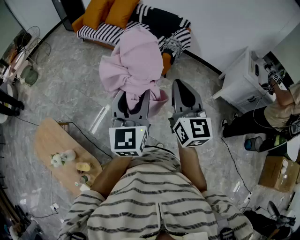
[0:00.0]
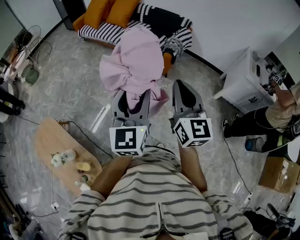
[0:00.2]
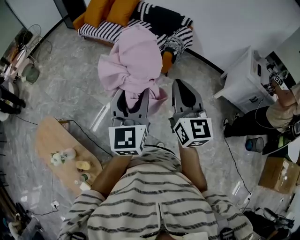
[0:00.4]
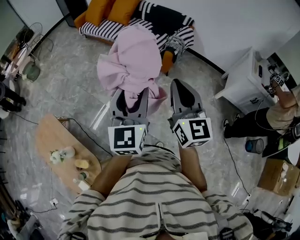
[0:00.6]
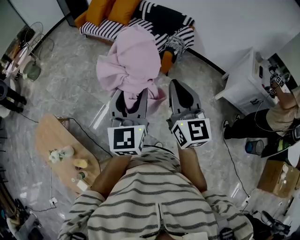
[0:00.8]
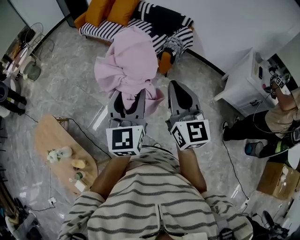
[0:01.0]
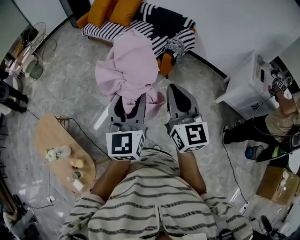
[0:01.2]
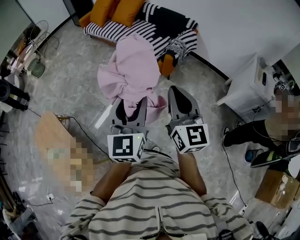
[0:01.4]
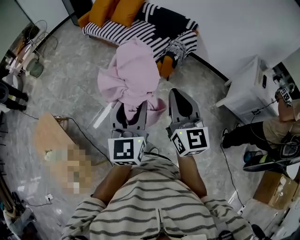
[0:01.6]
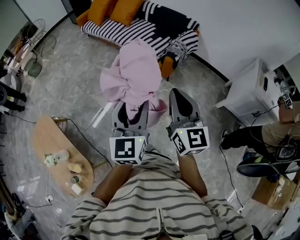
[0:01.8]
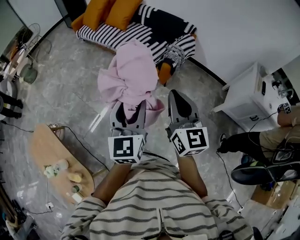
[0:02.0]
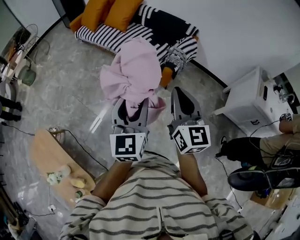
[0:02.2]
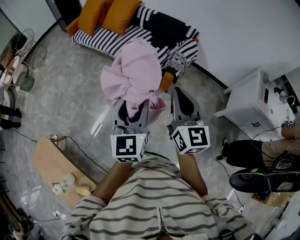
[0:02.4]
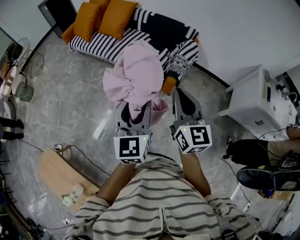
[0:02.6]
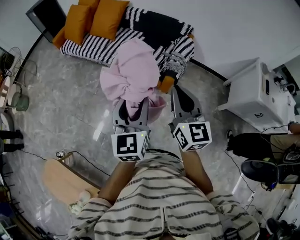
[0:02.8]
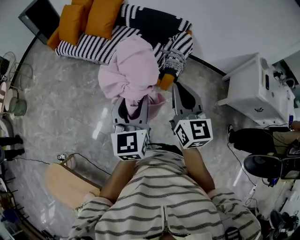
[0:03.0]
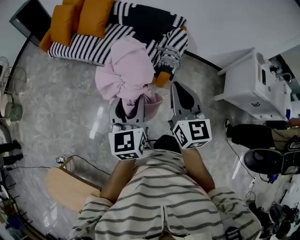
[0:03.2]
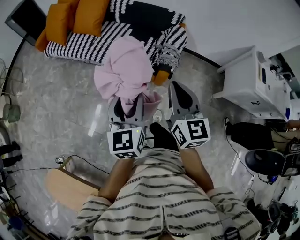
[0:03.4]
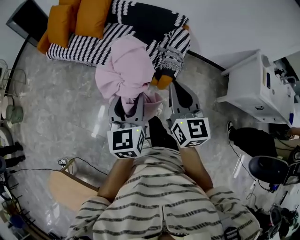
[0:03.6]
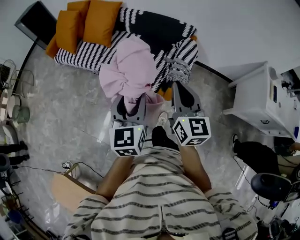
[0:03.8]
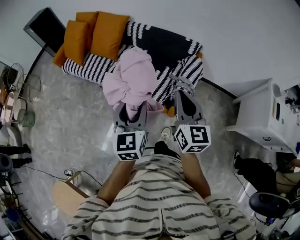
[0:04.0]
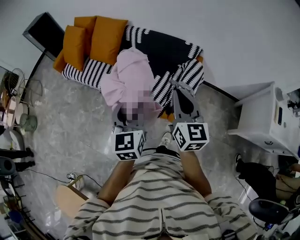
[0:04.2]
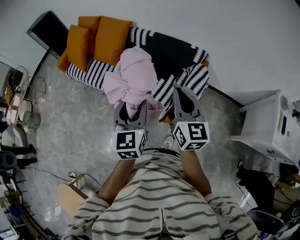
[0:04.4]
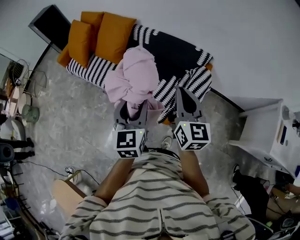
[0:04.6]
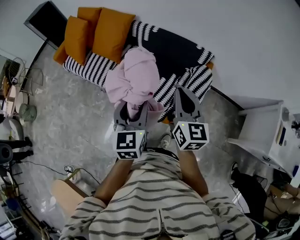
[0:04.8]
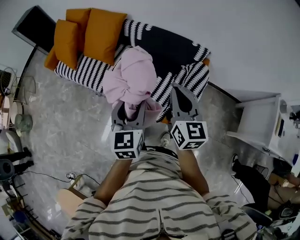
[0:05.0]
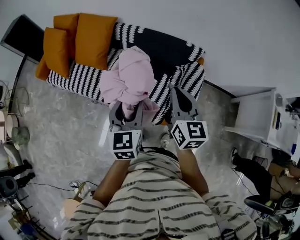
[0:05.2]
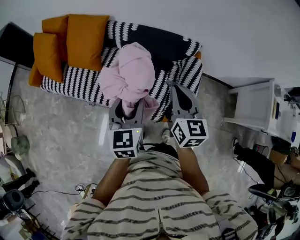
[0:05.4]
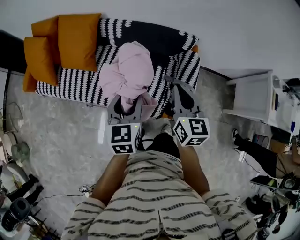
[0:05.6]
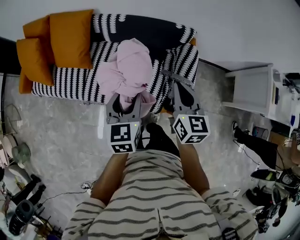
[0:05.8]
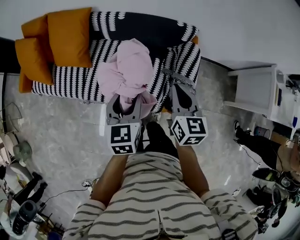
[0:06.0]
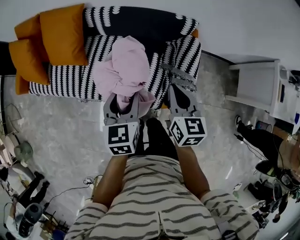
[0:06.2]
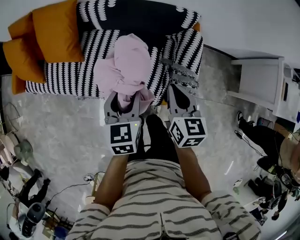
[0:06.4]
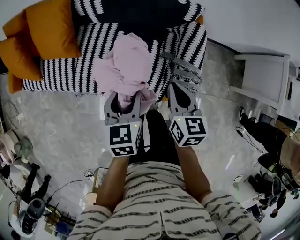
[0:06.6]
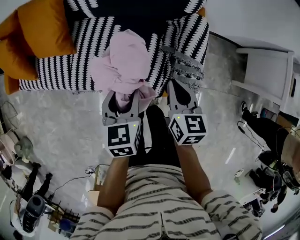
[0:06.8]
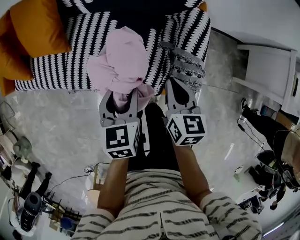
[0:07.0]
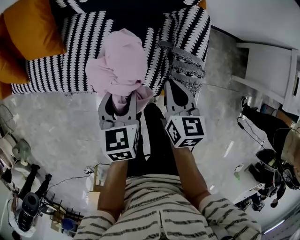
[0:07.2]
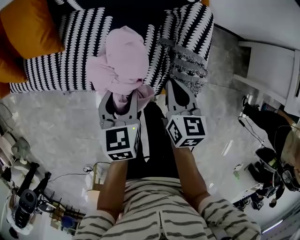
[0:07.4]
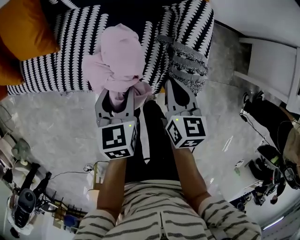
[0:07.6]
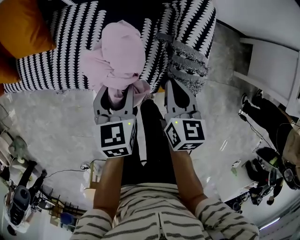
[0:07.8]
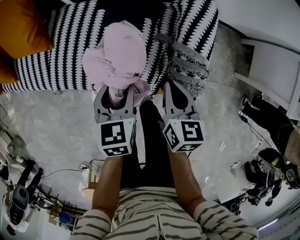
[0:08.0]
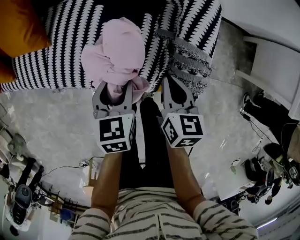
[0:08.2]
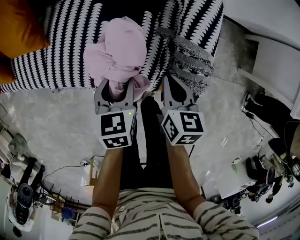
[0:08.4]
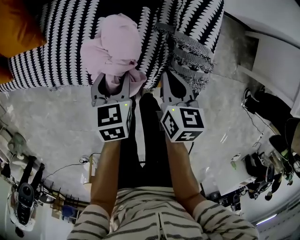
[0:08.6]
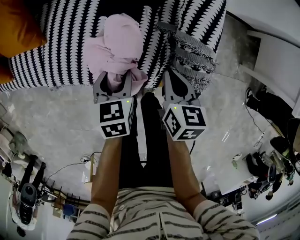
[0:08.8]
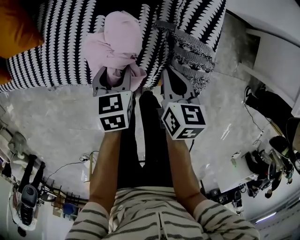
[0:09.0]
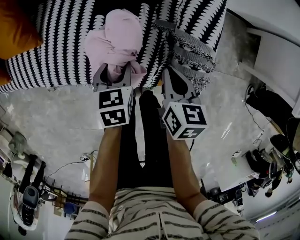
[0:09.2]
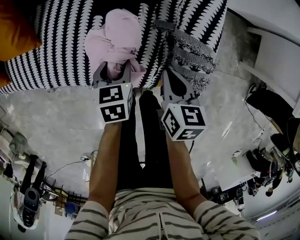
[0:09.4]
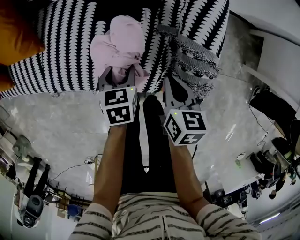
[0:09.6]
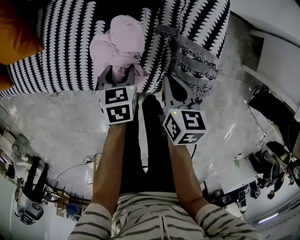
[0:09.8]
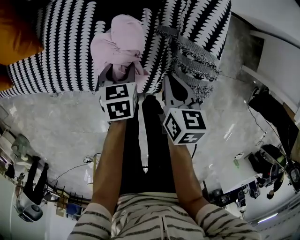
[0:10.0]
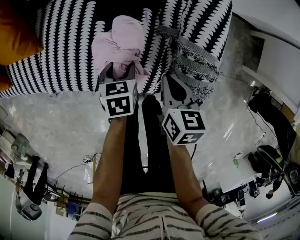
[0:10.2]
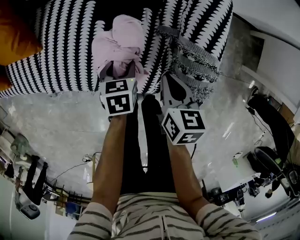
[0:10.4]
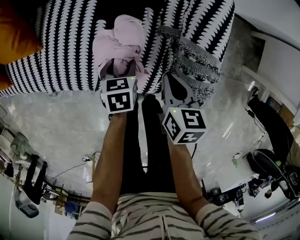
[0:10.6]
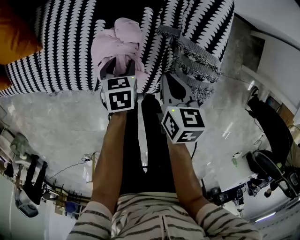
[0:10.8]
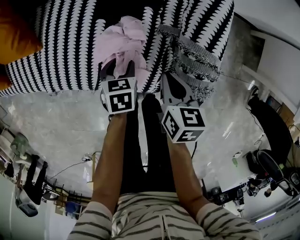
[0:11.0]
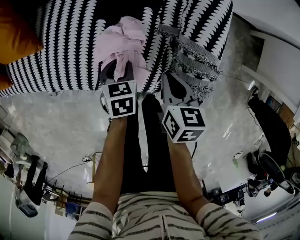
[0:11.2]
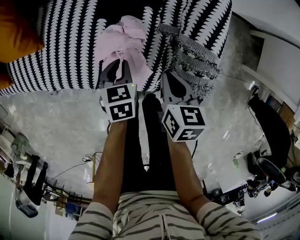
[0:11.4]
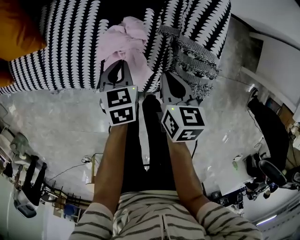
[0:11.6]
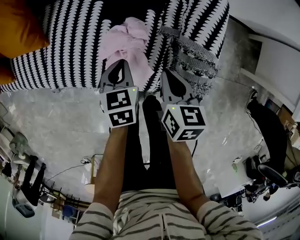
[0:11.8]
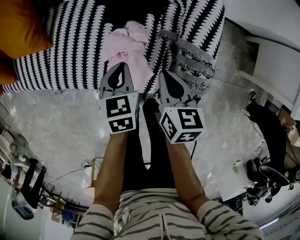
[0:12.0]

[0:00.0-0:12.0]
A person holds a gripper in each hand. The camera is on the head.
0:00.0 to 0:01.6: The two grippers go some 10 cm to the right.
0:01.6 to 0:03.0: Both grippers travel together forward, roughly 40 cm.
0:03.0 to 0:04.4: Both grippers move forward, roughly 35 cm.
0:04.4 to 0:06.0: Both grippers move forward and downward, roughly 25 cm. The left gripper rotates roughly 30 degrees. Meanwhile the right gripper turns by about 30 degrees.
0:06.0 to 0:07.6: The two grippers go about 25 cm downward.
0:07.6 to 0:09.0: The right gripper shifts approximately 10 cm downward, while the left gripper goes roughly 15 cm downward.
0:09.0 to 0:10.4: The left gripper is displaced downward by roughly 10 cm. Meanwhile the right gripper goes roughly 5 cm downward.
0:10.4 to 0:12.0: The left gripper moves upward, approximately 15 cm, and closes up; the right gripper heads upward, covering approximately 10 cm.

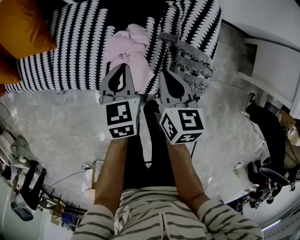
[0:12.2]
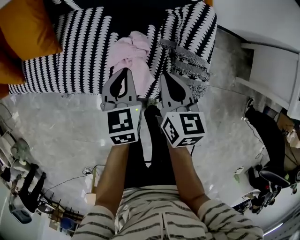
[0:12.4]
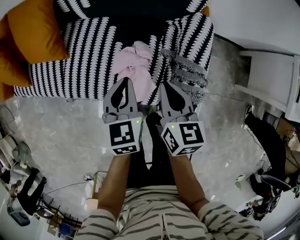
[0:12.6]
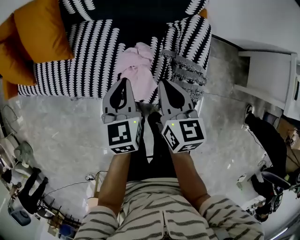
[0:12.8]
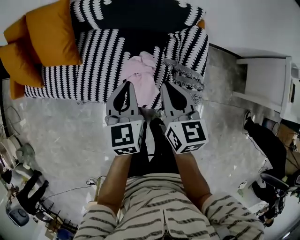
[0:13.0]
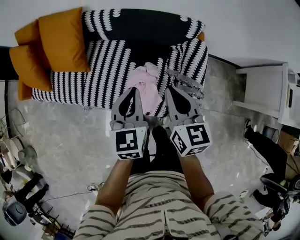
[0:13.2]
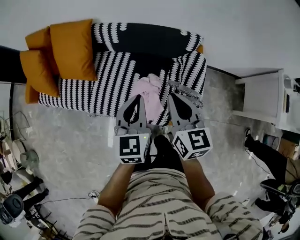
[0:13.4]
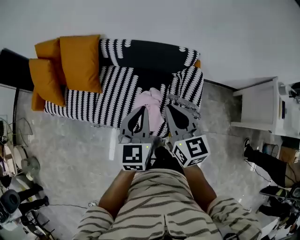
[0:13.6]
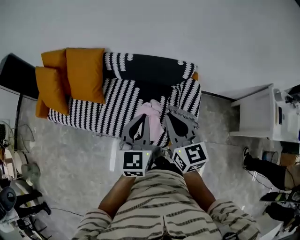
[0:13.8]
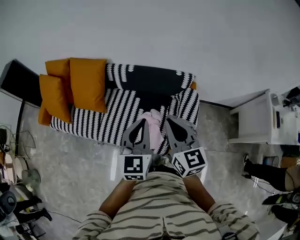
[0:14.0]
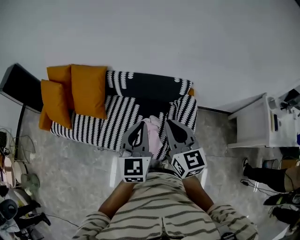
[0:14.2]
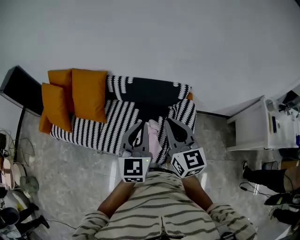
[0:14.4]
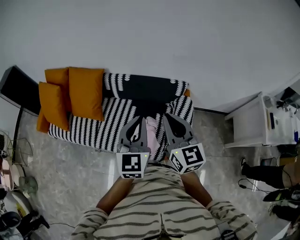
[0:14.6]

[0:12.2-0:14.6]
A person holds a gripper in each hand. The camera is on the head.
0:12.2 to 0:13.4: Both grippers move upward, approximately 30 cm. The left gripper turns by about 20 degrees. The right gripper turns by approximately 20 degrees.
0:13.4 to 0:14.6: Both grippers travel together upward, approximately 20 cm.

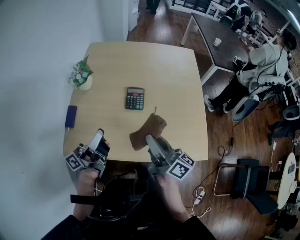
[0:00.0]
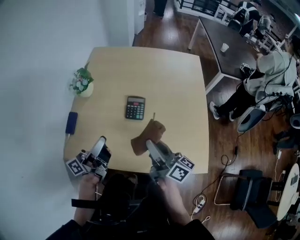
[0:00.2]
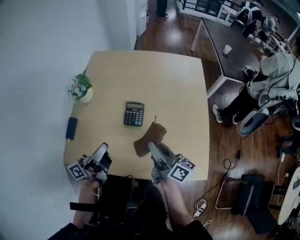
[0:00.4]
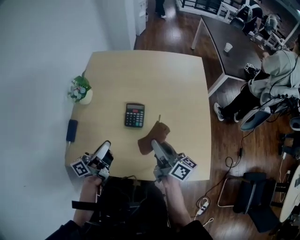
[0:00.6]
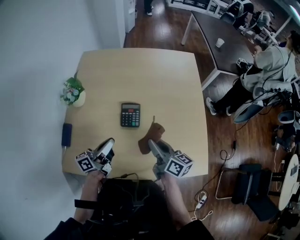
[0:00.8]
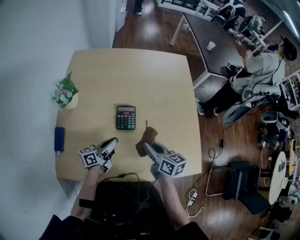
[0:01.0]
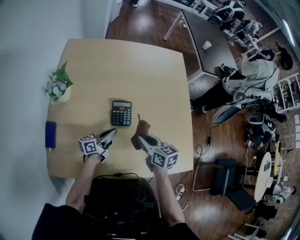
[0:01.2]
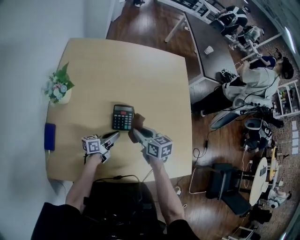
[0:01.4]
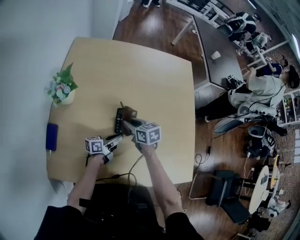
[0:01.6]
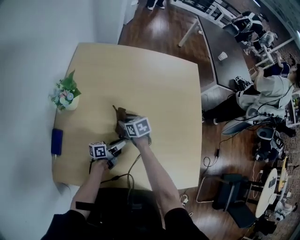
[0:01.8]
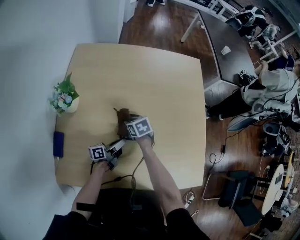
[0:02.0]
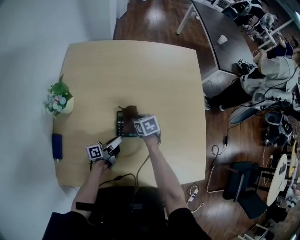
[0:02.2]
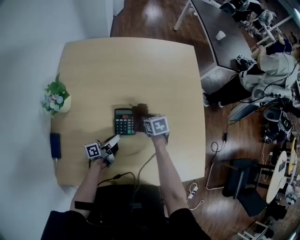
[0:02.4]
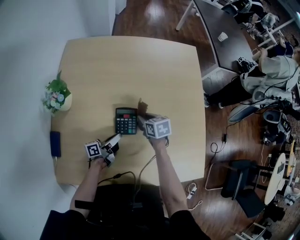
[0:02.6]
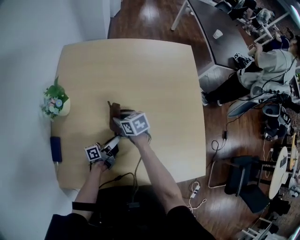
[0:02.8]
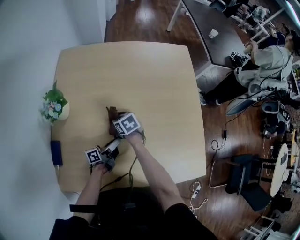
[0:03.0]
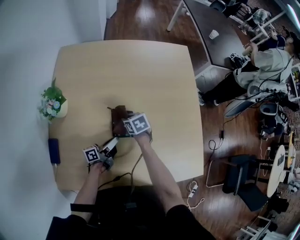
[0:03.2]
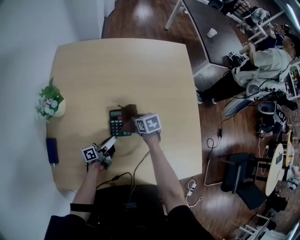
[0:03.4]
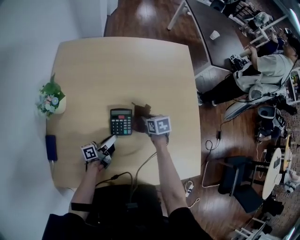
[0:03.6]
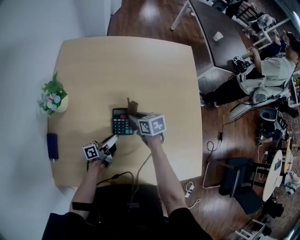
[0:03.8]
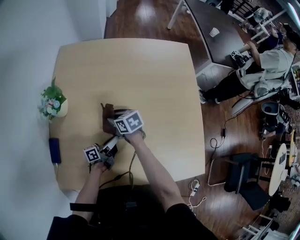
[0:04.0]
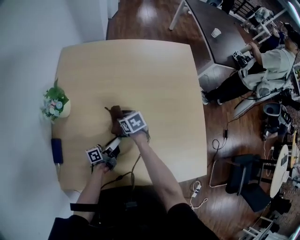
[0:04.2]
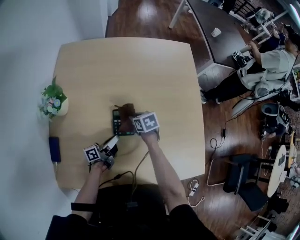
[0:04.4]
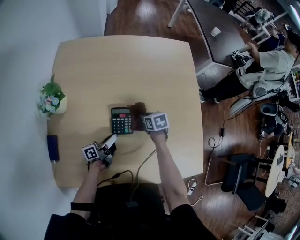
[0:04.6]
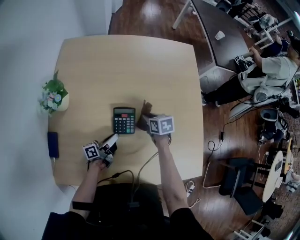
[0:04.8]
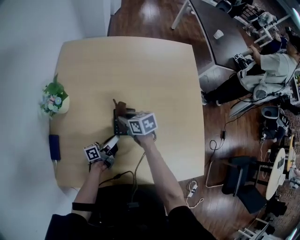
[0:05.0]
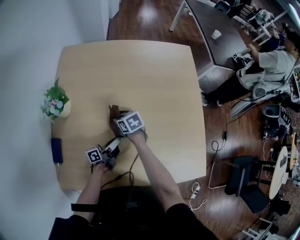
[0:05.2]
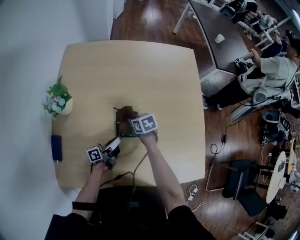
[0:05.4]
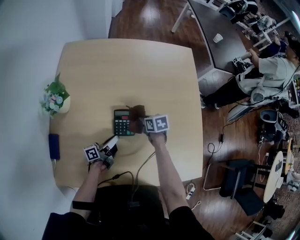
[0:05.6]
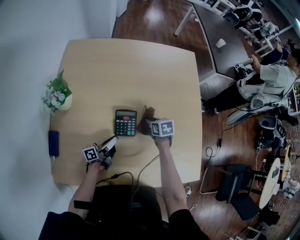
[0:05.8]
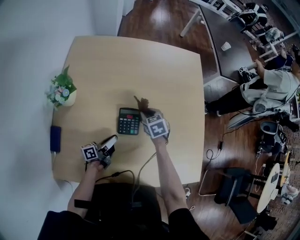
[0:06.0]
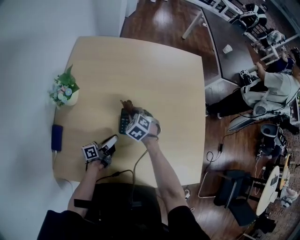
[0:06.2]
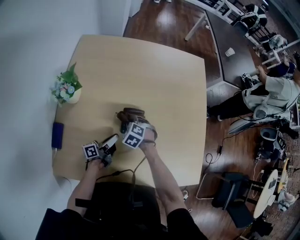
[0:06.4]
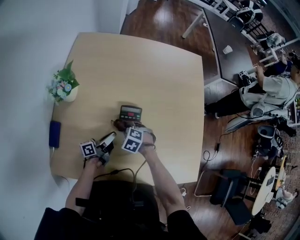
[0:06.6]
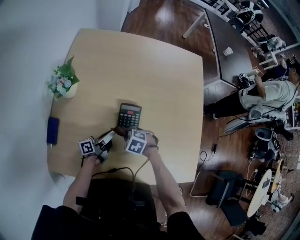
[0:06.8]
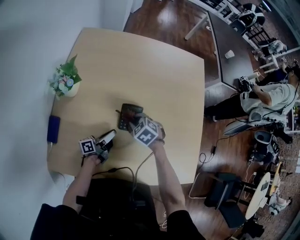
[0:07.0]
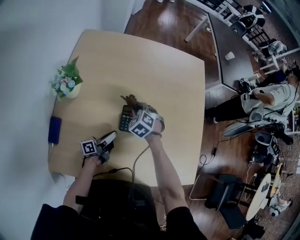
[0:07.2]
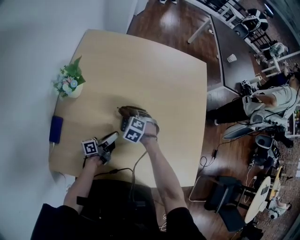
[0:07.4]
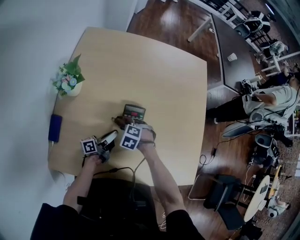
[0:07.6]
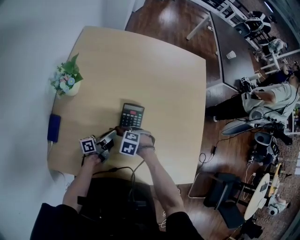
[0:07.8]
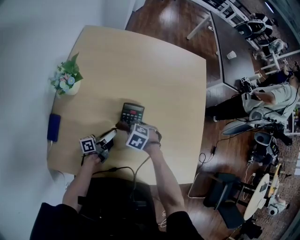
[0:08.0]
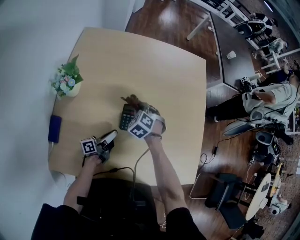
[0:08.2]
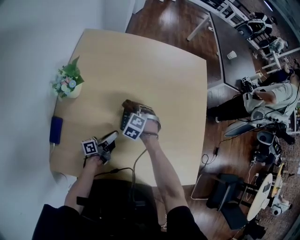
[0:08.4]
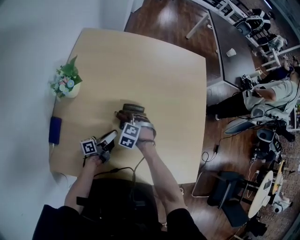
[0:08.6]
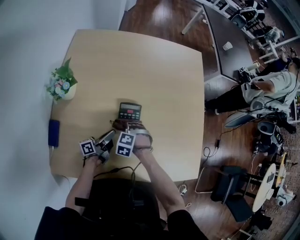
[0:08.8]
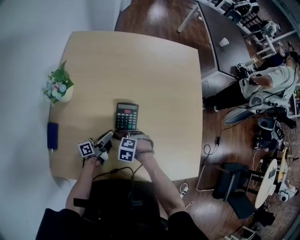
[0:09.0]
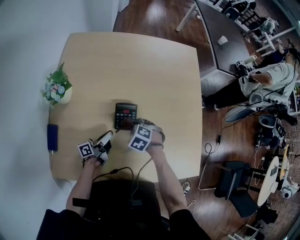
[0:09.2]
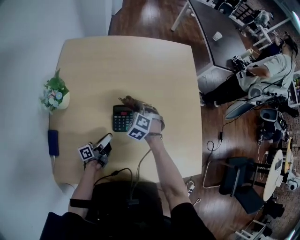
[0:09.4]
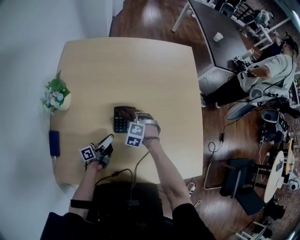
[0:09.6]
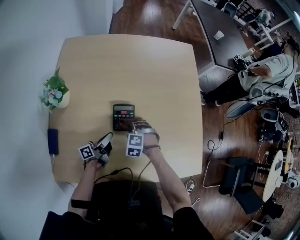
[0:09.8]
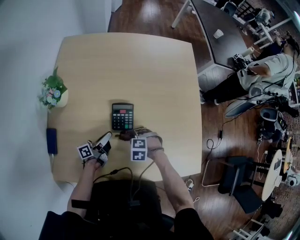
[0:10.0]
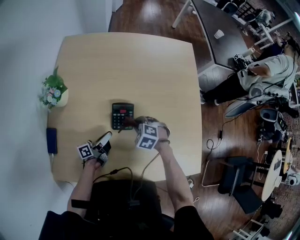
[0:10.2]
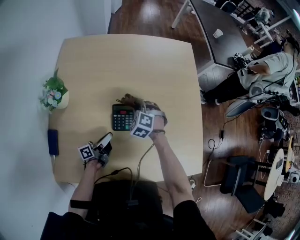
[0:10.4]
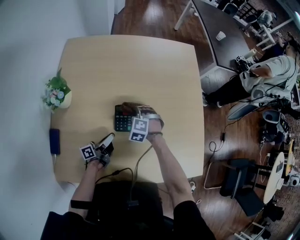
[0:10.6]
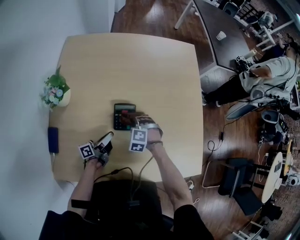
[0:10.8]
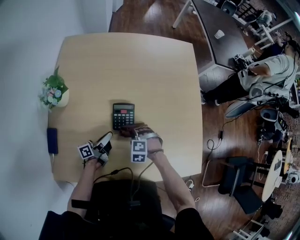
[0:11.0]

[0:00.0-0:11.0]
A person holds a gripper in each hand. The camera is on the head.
0:00.0 to 0:01.6: The right gripper moves forward and downward, some 35 cm, and tips its fingers downward by about 50 degrees. The left gripper heads downward and forward, covering approximately 35 cm, and rotates some 40 degrees.
0:01.6 to 0:03.2: The right gripper goes left and right, roughly 15 cm each way, reversing 3 times.
0:03.2 to 0:04.8: The right gripper goes left and right, approximately 20 cm each way, reversing 2 times.
0:04.8 to 0:06.2: The right gripper swings left and right, approximately 15 cm each way, with 2 reversals, and rotates around the line of its fingers by approximately 60 degrees, counterclockwise from behind.
0:06.2 to 0:07.8: The right gripper moves up and down over about 5 cm, changing direction 2 times, and swivels approximately 30 degrees.
0:07.8 to 0:09.4: The right gripper swings up and down, approximately 10 cm each way, with 2 reversals, and turns by approximately 40 degrees.
0:09.4 to 0:11.0: The right gripper moves up and down over some 10 cm, changing direction 2 times, and turns by some 30 degrees.
